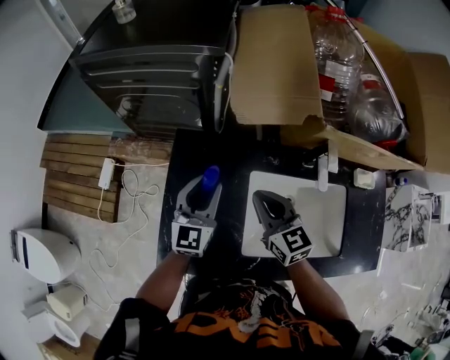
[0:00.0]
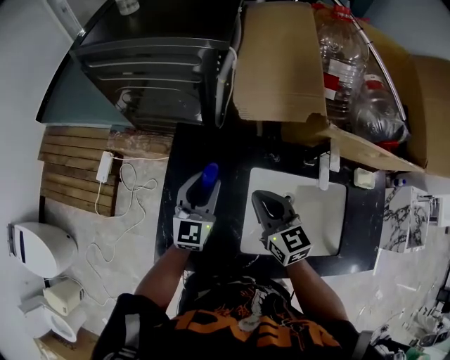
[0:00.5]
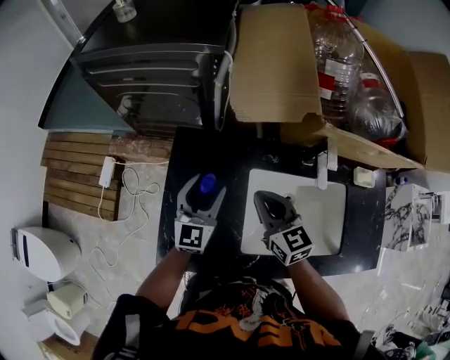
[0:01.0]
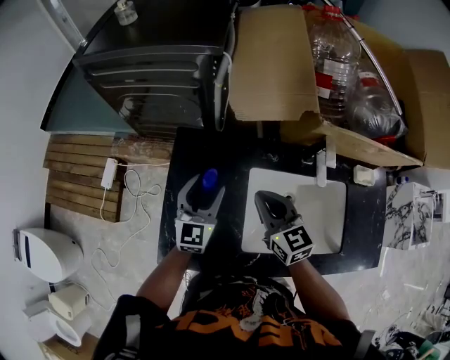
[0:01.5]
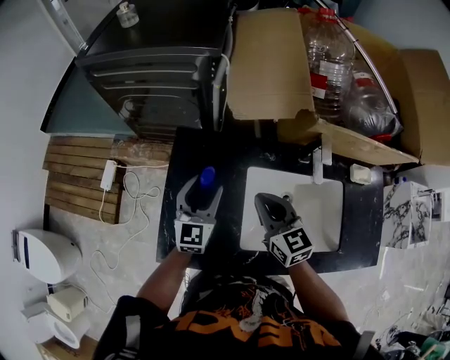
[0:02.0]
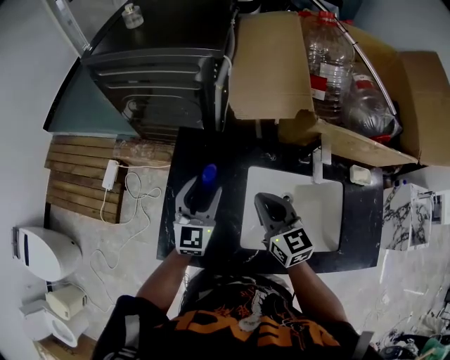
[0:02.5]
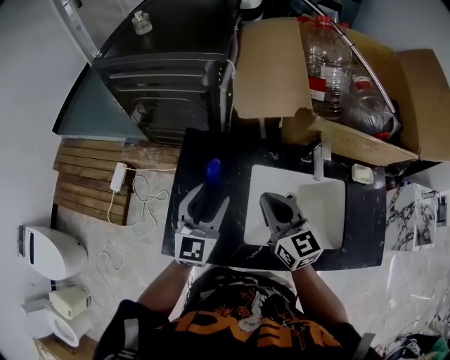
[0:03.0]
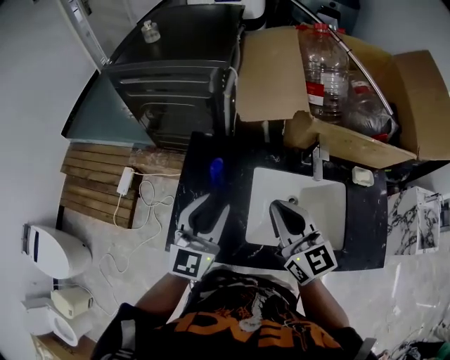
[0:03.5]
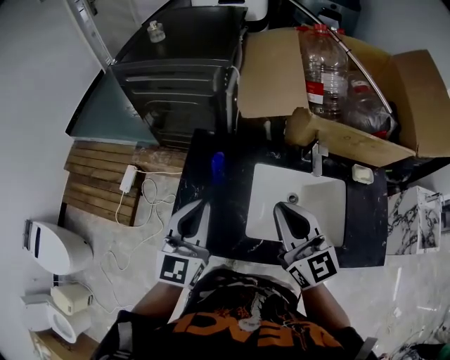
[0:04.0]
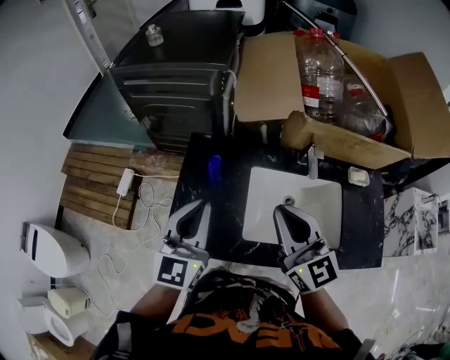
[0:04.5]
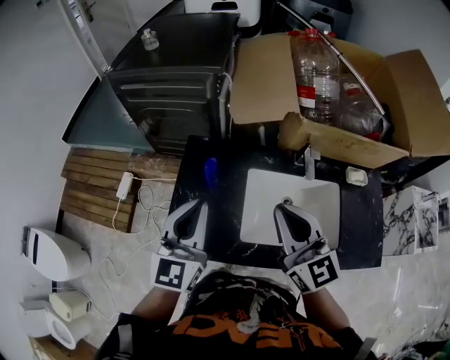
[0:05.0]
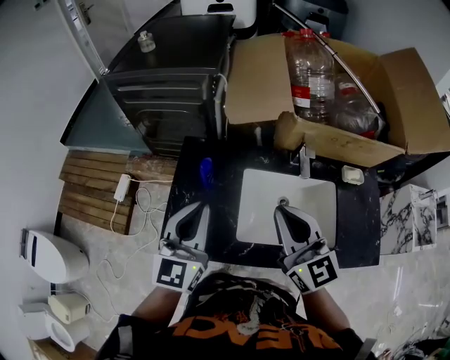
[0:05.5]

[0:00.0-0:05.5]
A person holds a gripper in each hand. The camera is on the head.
0.0 to 2.0 s: The left gripper opens up.
2.0 to 3.5 s: Both grippers travel together upward and backward, some 15 cm.
3.5 to 5.5 s: The right gripper changes place by about 5 cm, while the left gripper shifts by some 5 cm, and closes its fingers.

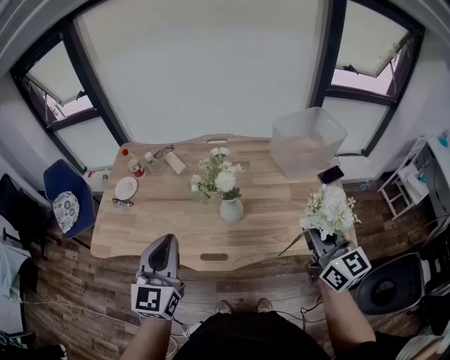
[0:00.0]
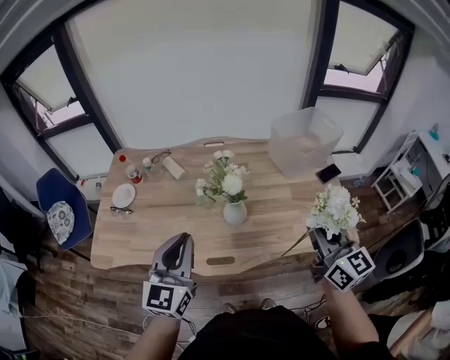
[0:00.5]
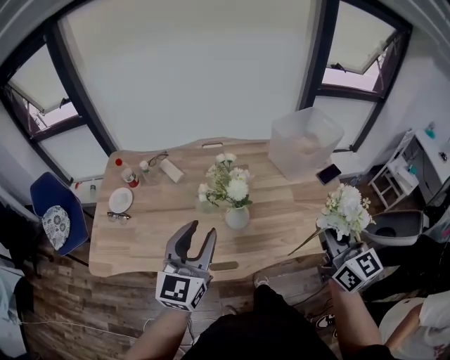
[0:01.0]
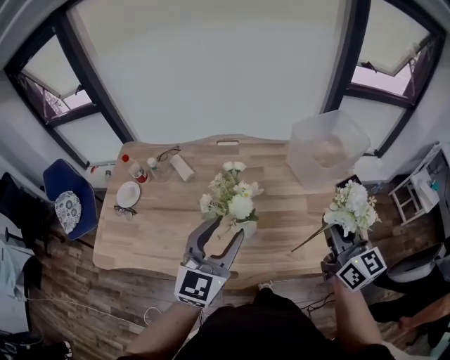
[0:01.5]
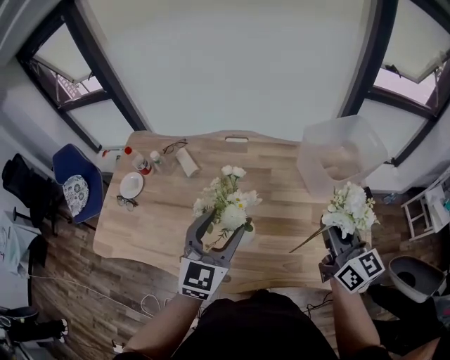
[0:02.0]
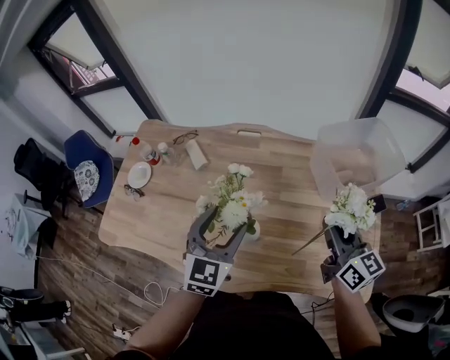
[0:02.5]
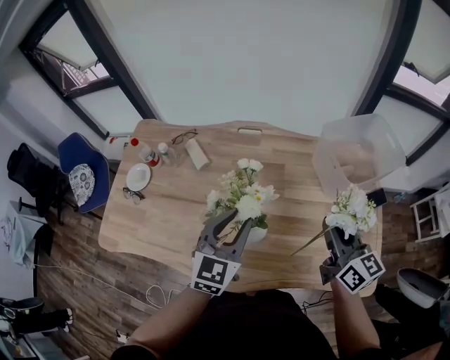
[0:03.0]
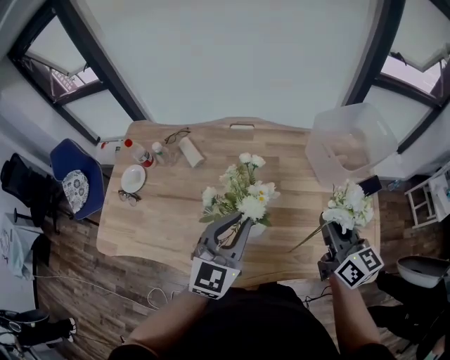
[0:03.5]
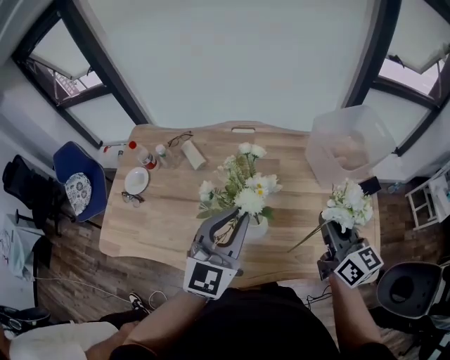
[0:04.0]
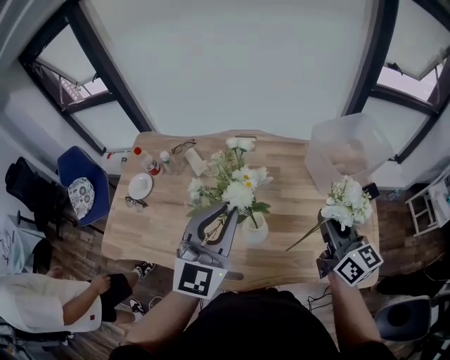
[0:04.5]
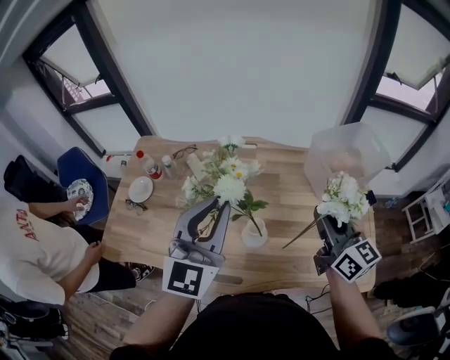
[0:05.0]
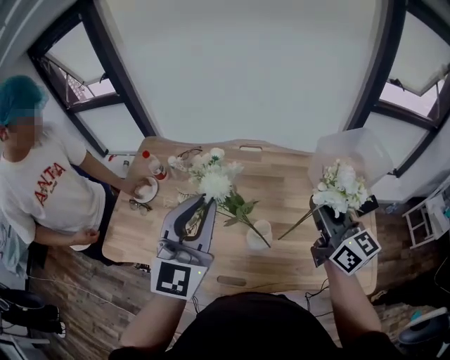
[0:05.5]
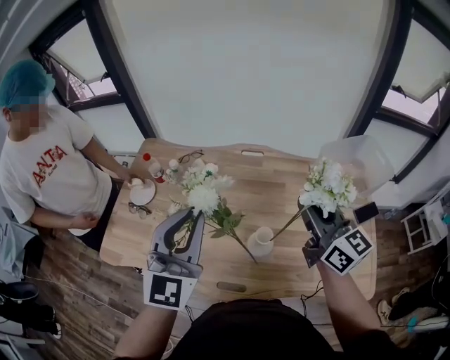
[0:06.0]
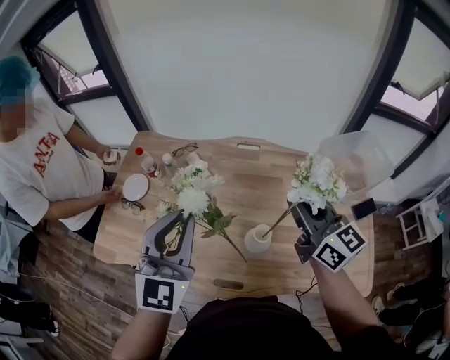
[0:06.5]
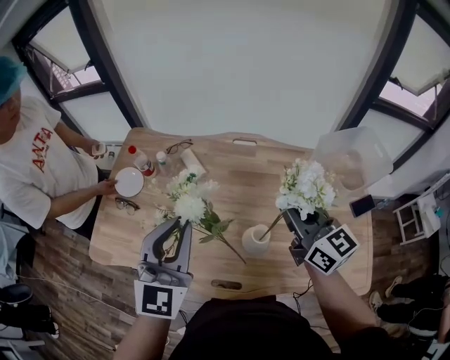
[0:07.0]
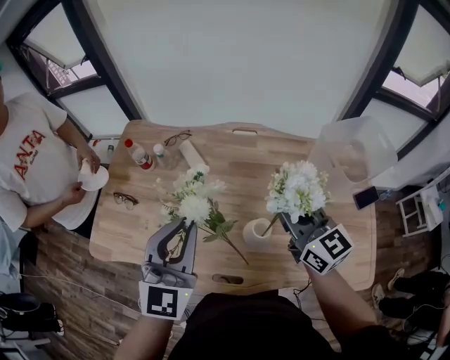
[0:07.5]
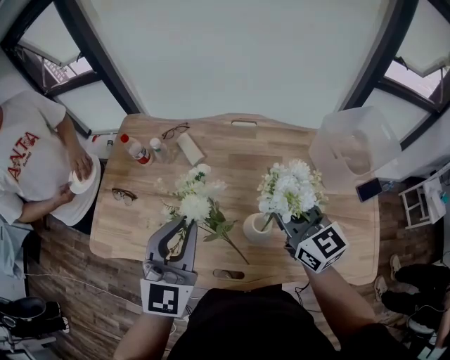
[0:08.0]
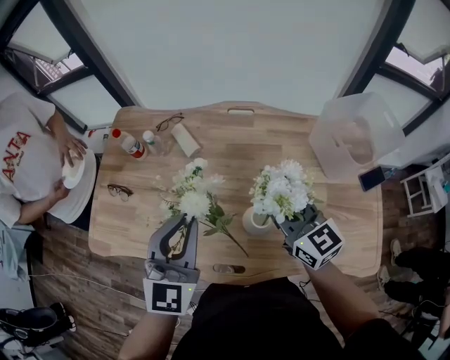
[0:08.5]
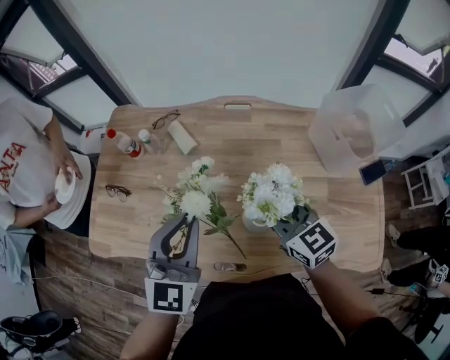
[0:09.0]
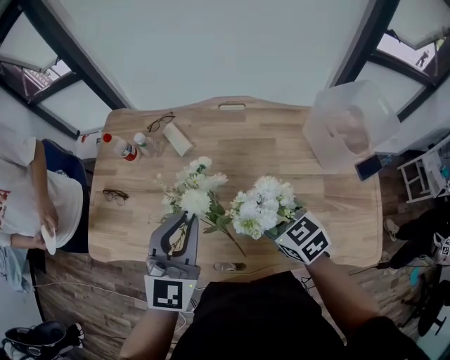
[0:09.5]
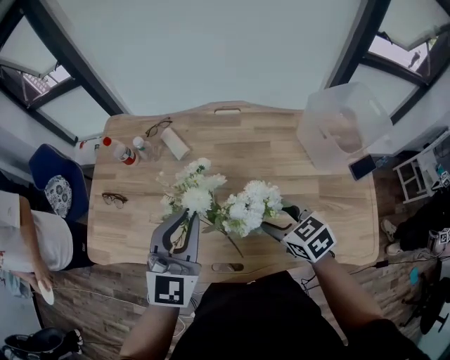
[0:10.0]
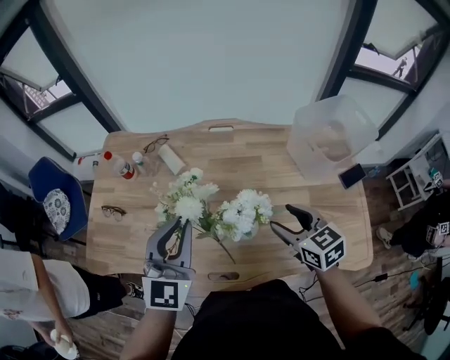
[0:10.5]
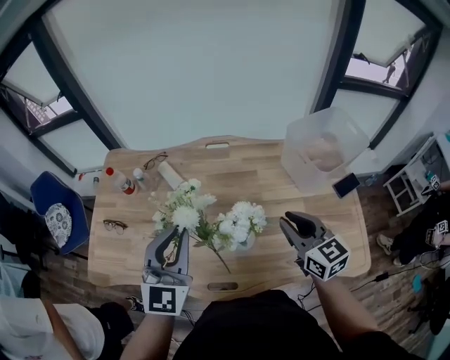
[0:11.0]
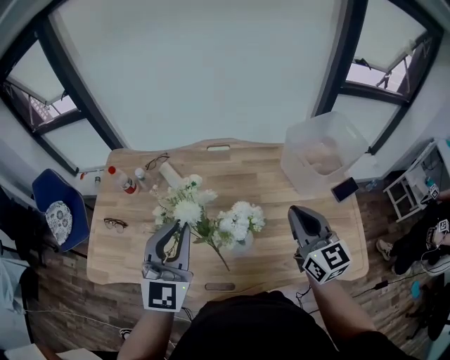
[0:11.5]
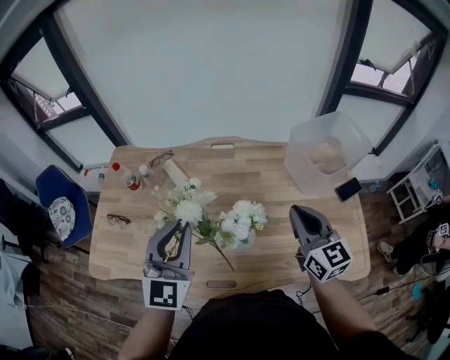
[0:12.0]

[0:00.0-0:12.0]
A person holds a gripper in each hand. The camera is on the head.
0.0 to 2.0 s: The right gripper moves forward, some 20 cm; the left gripper travels forward and to the right by about 20 cm, and opens.
2.0 to 4.0 s: The left gripper closes up. Meanwhile the right gripper shifts by approximately 5 cm.
4.0 to 6.0 s: The left gripper travels to the left and upward by approximately 15 cm. The right gripper travels to the left, upward and forward by approximately 15 cm.
6.0 to 8.0 s: The right gripper moves downward and to the left, about 10 cm. The left gripper shifts roughly 10 cm downward.
8.0 to 10.0 s: The right gripper moves downward and backward, roughly 15 cm, tips its fingers downward by roughly 40 degrees, and opens.
10.0 to 12.0 s: The right gripper shifts approximately 15 cm upward and to the right, points its fingers about 40 degrees further upward, and closes its fingers; the left gripper ends up approximately 5 cm from where it was.

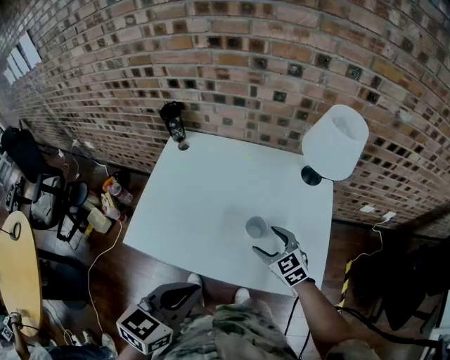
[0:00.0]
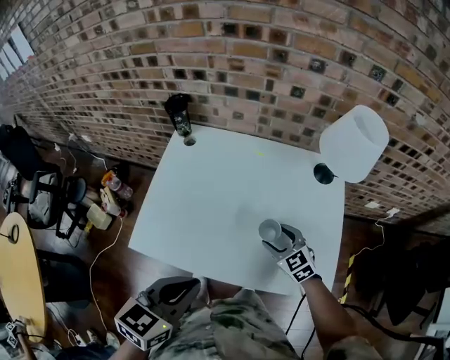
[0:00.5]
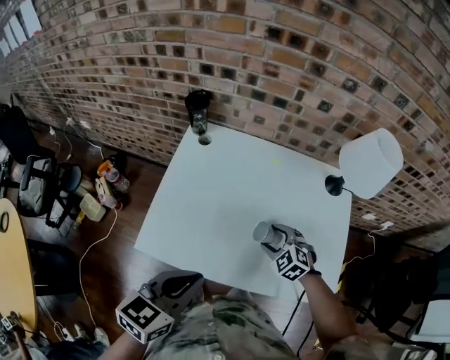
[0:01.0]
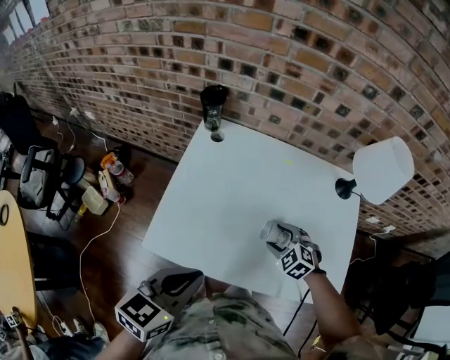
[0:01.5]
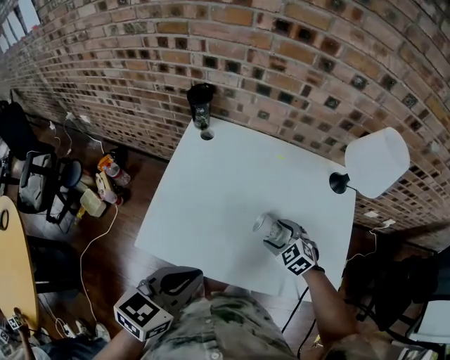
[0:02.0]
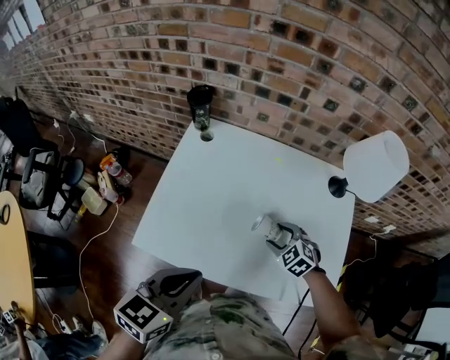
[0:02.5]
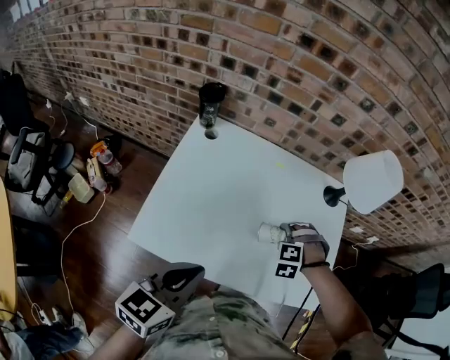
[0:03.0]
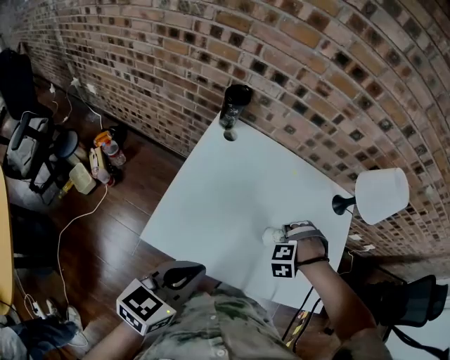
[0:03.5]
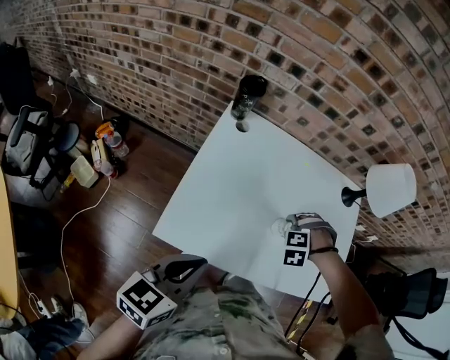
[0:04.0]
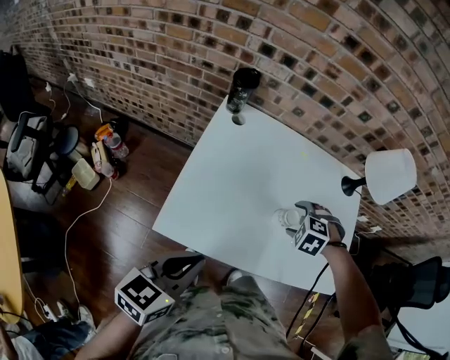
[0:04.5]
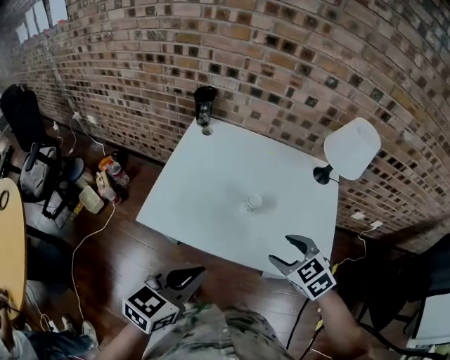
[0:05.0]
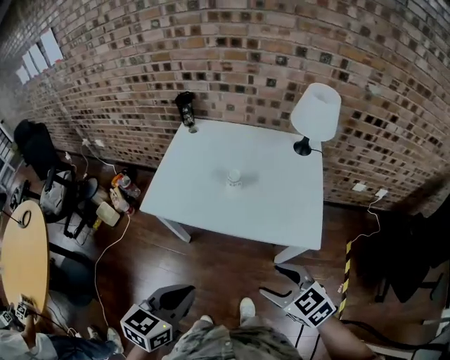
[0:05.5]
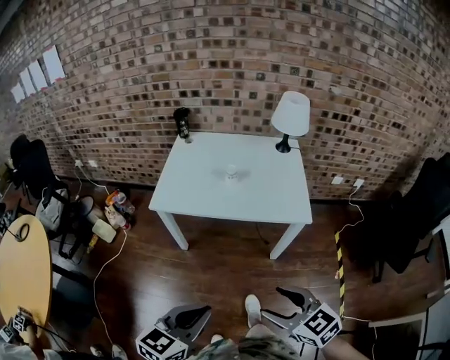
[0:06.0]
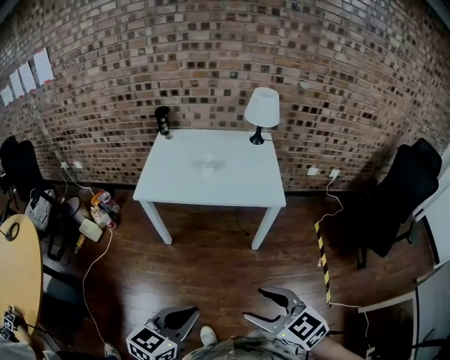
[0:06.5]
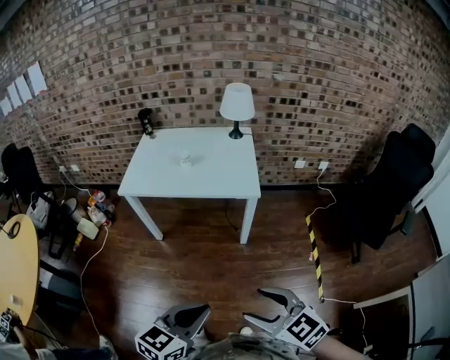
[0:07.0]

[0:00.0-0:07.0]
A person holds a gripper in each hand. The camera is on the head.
0.0 to 2.0 s: The right gripper heads to the left, downward and forward, covering approximately 10 cm, and rotates roughly 20 degrees. Meanwhile the left gripper travels to the left and forward by some 15 cm.
2.0 to 3.5 s: The left gripper ends up approximately 5 cm from where it was, while the right gripper turns by some 70 degrees.
3.5 to 5.0 s: The left gripper changes place by some 15 cm. Meanwhile the right gripper moves about 20 cm, and turns by approximately 80 degrees.
5.0 to 7.0 s: The pair of grippers is taken backward, some 60 cm. The right gripper rotates about 20 degrees.

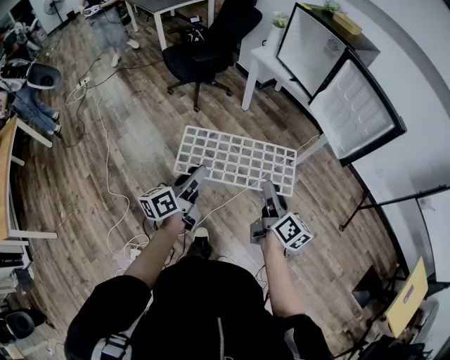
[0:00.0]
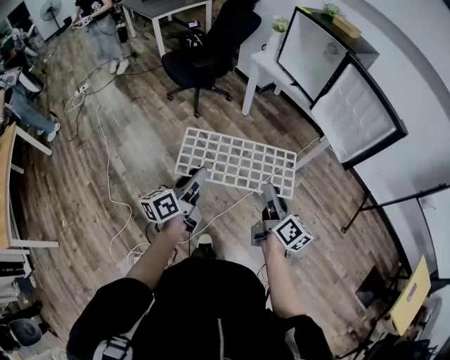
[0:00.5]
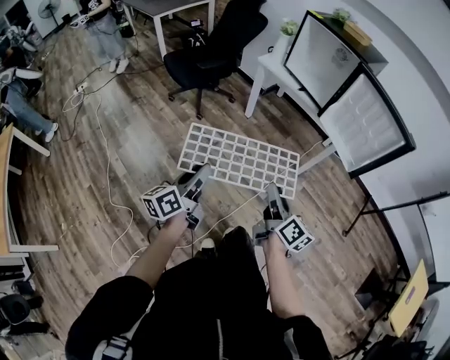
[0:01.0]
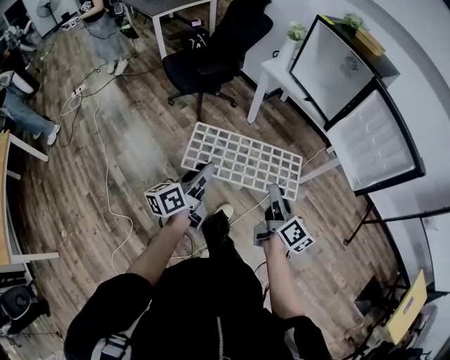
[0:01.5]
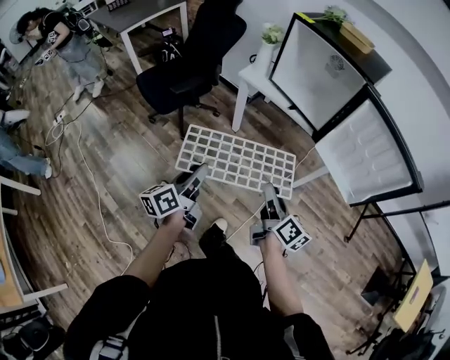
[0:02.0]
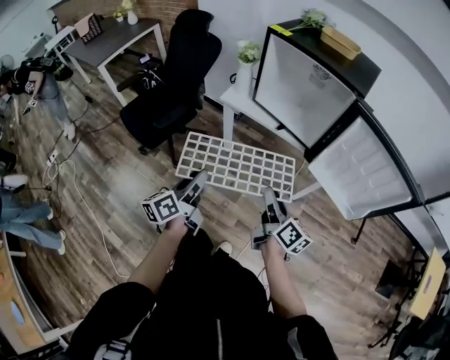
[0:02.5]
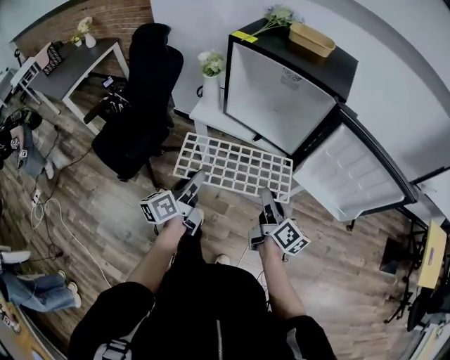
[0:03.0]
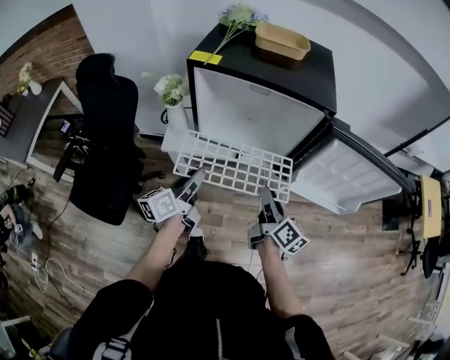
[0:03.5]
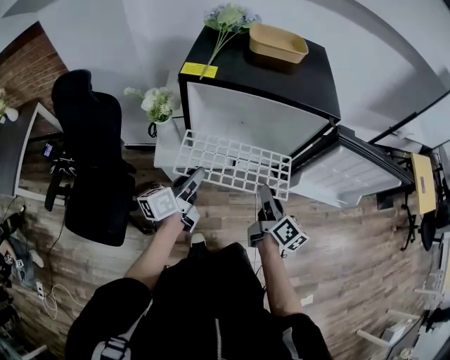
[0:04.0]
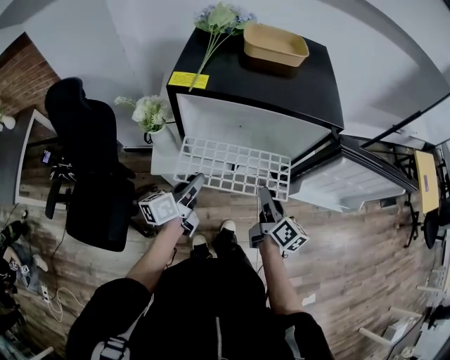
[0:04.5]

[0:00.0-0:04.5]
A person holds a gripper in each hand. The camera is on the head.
0.0 to 2.0 s: The grippers both shift forward by approximately 30 cm.
2.0 to 4.5 s: The right gripper ends up roughly 35 cm from where it was, and turns by roughly 40 degrees. The left gripper shifts by roughly 50 cm, and turns by about 40 degrees.
